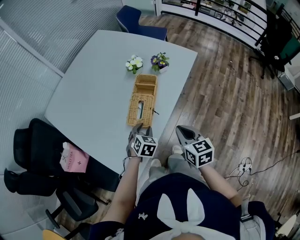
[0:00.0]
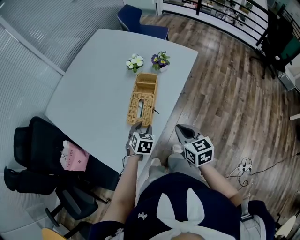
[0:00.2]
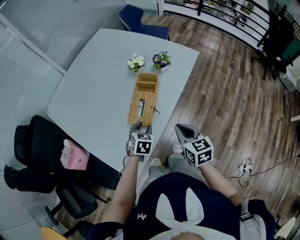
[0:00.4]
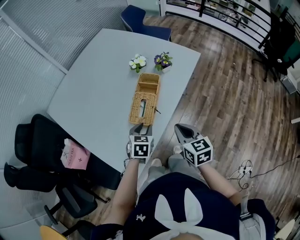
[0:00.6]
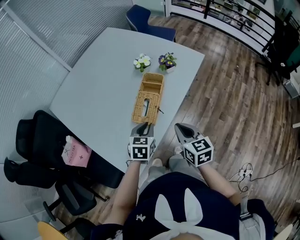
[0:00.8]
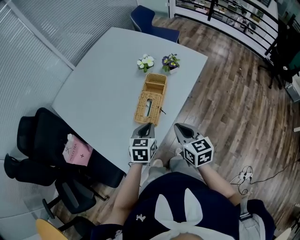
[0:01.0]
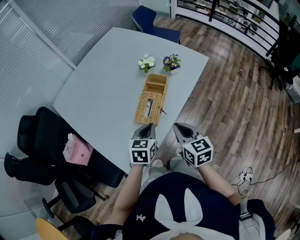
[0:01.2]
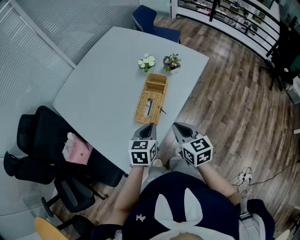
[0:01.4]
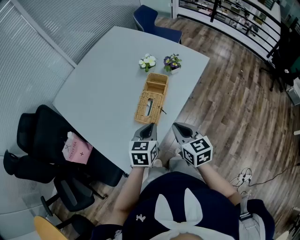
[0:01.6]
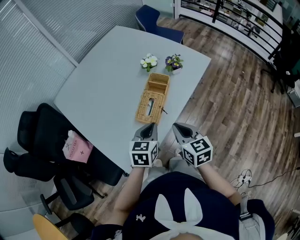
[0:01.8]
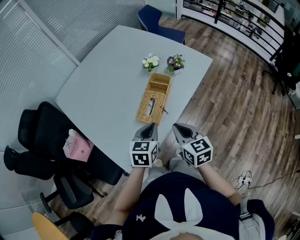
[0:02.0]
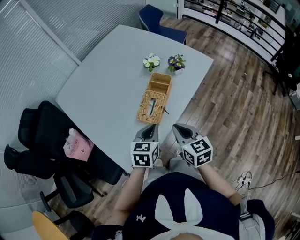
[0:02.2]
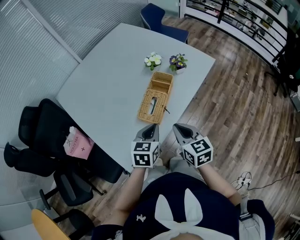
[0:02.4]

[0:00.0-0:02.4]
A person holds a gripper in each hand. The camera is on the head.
0:00.0 to 0:01.2: The right gripper changes place by about 5 cm. The left gripper goes some 10 cm upward, rotates some 30 degrees, and closes.
0:01.2 to 0:02.4: The grippers stay close to where they were, moving slightly.

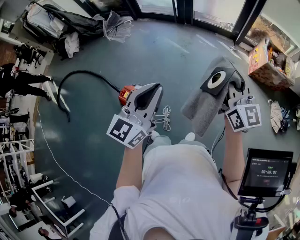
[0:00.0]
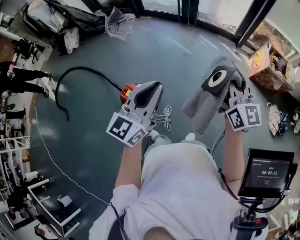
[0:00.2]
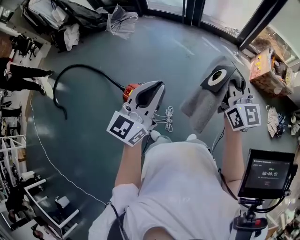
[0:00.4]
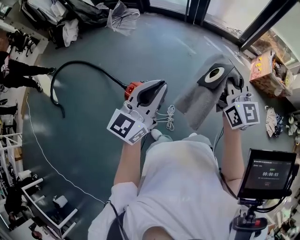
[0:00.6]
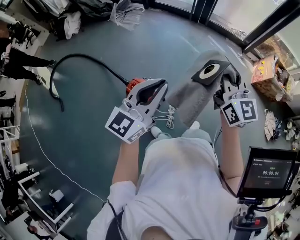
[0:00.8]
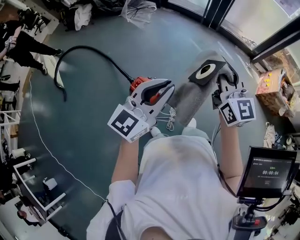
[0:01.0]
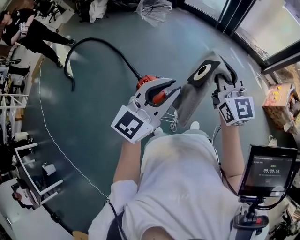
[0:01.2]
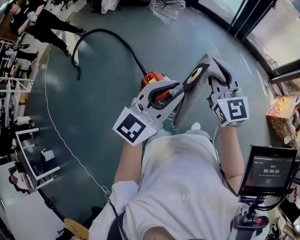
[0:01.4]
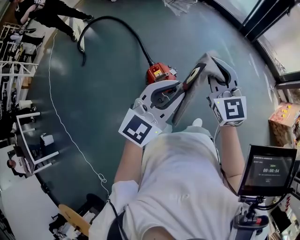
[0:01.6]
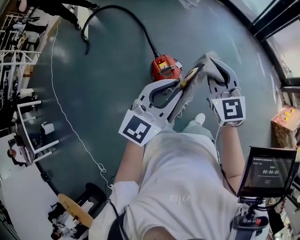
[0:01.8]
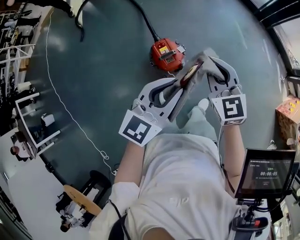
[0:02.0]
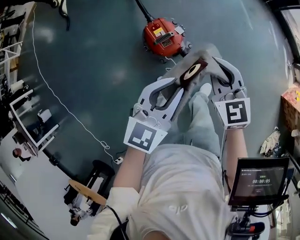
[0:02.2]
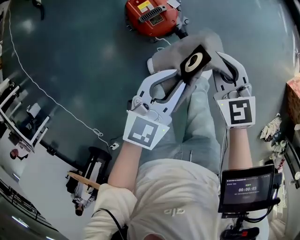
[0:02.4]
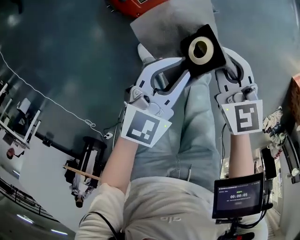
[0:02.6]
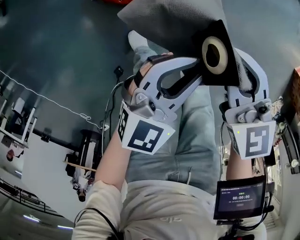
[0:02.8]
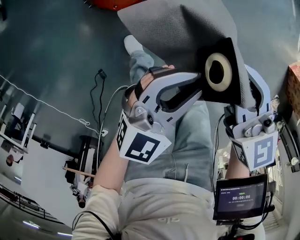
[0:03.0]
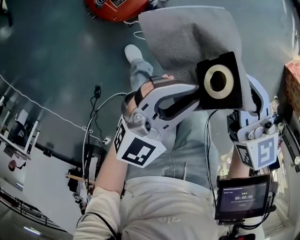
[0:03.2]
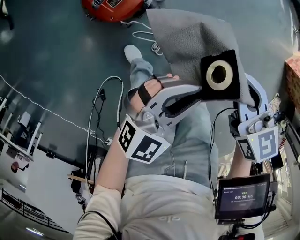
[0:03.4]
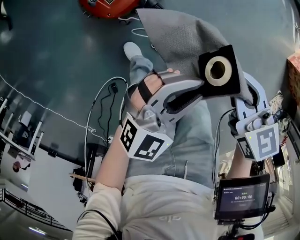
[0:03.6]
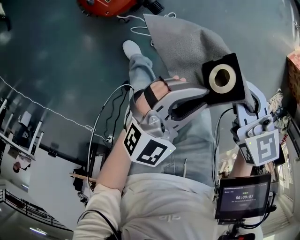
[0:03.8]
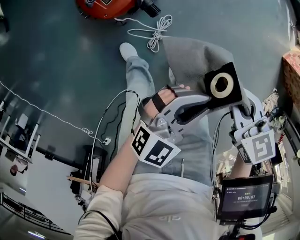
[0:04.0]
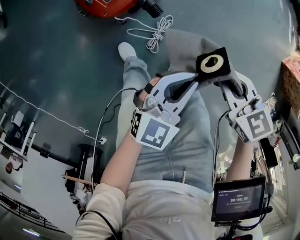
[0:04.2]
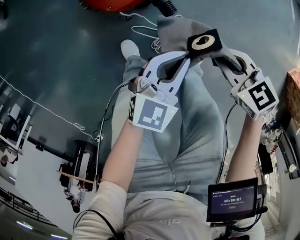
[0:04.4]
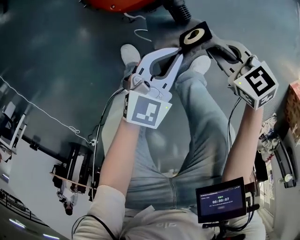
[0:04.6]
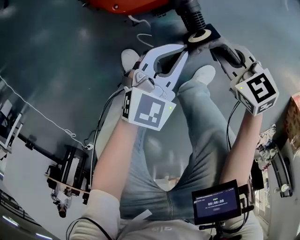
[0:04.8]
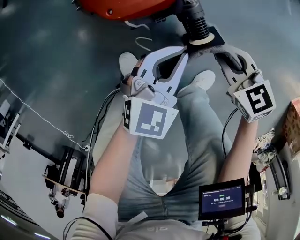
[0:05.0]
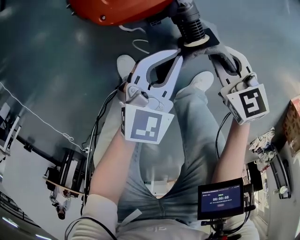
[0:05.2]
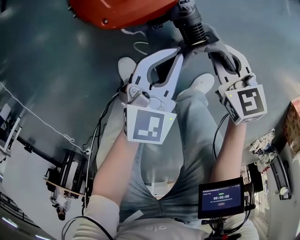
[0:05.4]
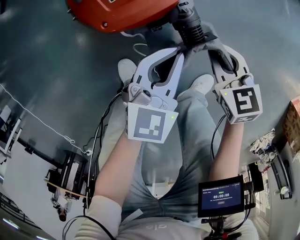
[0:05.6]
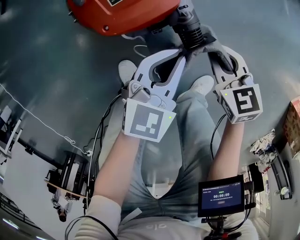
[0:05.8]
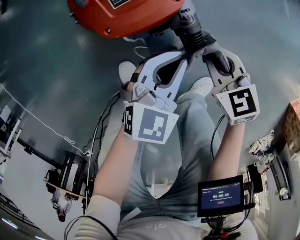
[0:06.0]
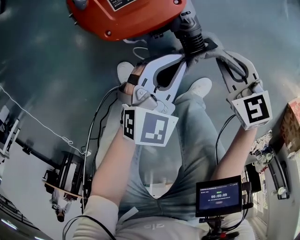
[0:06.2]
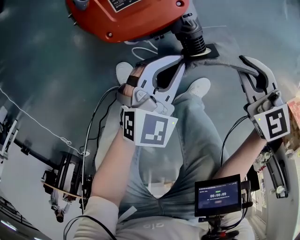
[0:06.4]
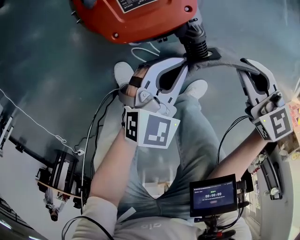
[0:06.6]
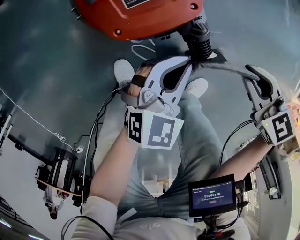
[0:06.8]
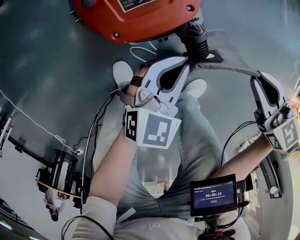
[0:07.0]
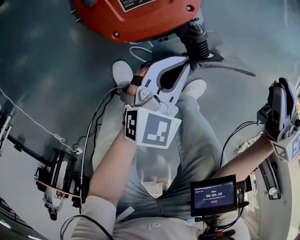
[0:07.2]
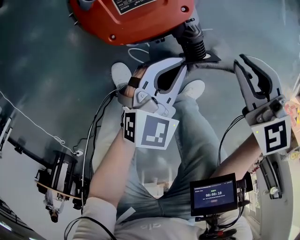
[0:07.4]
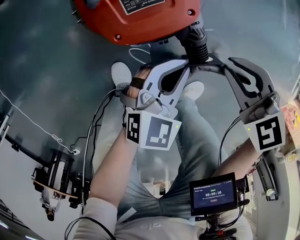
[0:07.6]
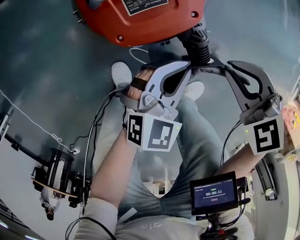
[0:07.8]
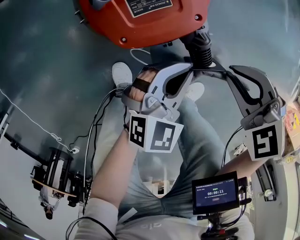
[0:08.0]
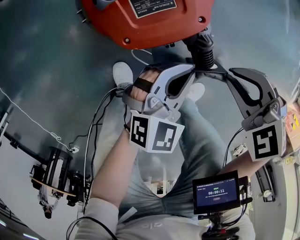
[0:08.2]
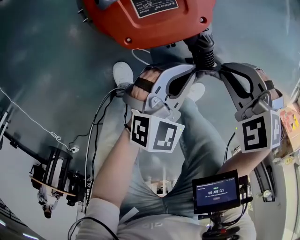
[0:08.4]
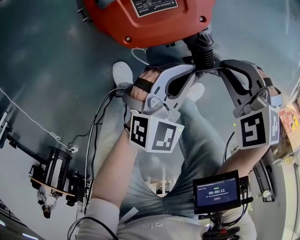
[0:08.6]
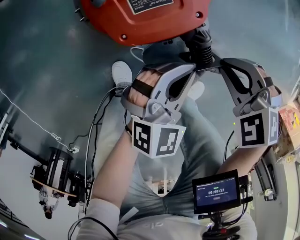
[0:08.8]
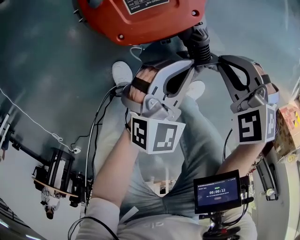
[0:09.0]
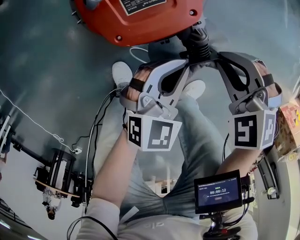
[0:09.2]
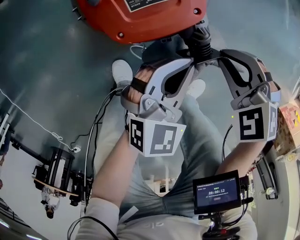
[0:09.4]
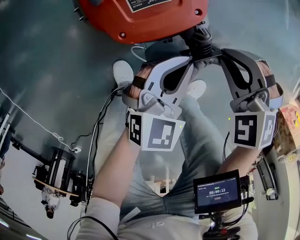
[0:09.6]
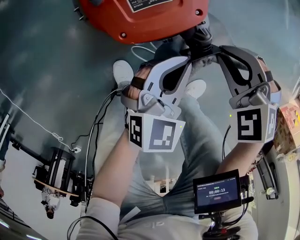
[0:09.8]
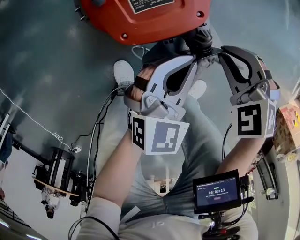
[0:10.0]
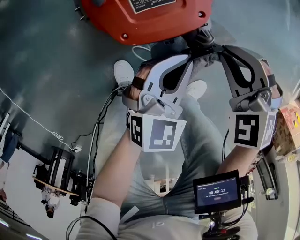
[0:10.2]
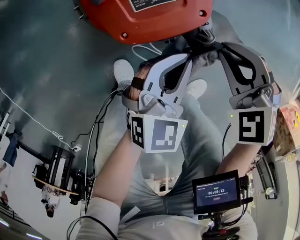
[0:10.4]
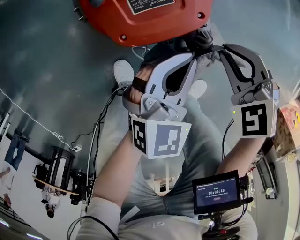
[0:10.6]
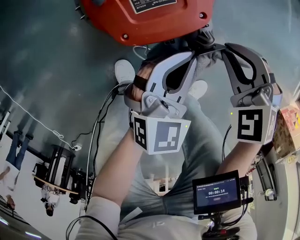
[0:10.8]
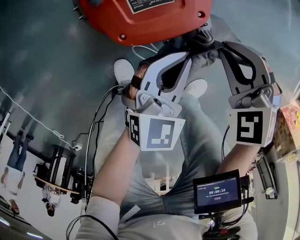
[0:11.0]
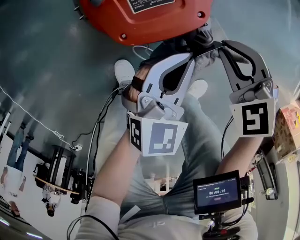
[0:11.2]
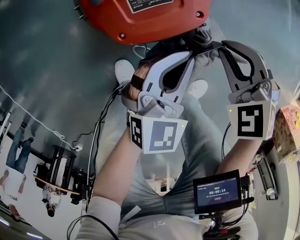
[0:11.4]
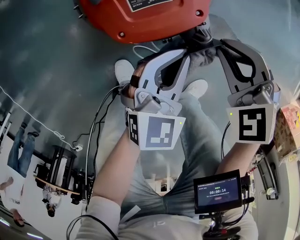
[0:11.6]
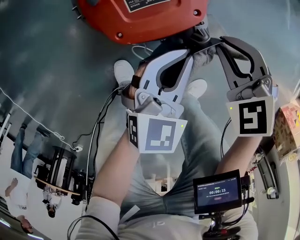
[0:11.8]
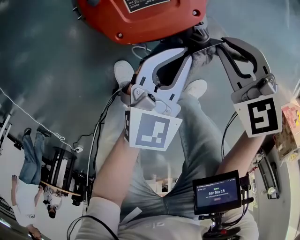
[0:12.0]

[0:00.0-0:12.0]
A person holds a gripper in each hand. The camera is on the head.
0:00.0 to 0:01.6: The left gripper shifts approximately 15 cm to the left, and swivels roughly 20 degrees, while the right gripper travels to the left by roughly 35 cm, and changes its angle by about 40 degrees.
0:01.6 to 0:03.0: Both grippers move downward, approximately 40 cm. The right gripper turns by about 40 degrees.
0:03.0 to 0:04.4: The grippers both shift downward by some 10 cm. The right gripper turns by some 30 degrees.
0:04.4 to 0:06.0: The two grippers go some 20 cm downward.
0:06.0 to 0:07.6: The right gripper travels upward by roughly 10 cm, and changes its angle by some 30 degrees.
0:07.6 to 0:09.0: The right gripper changes its angle by approximately 20 degrees.
0:09.0 to 0:10.4: There are only small adjustments of the grippers.
0:10.4 to 0:12.0: The grippers move only a little.

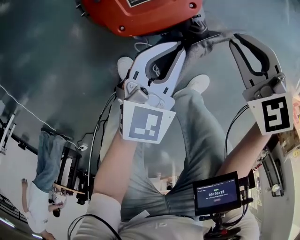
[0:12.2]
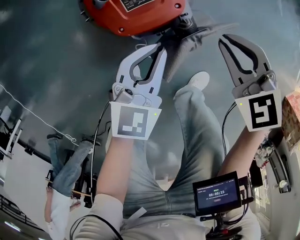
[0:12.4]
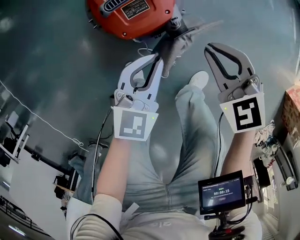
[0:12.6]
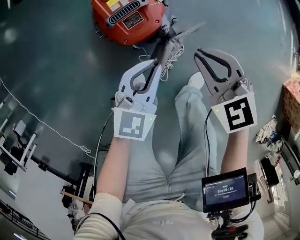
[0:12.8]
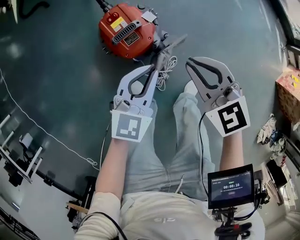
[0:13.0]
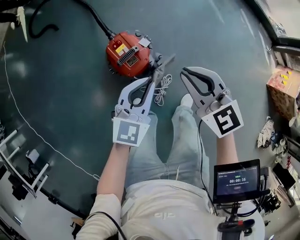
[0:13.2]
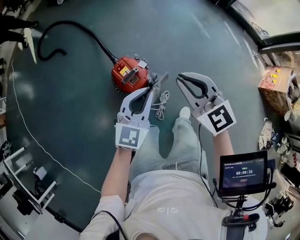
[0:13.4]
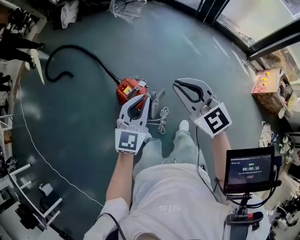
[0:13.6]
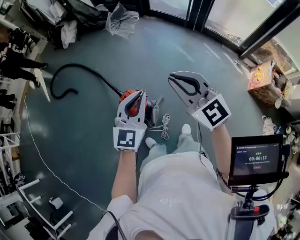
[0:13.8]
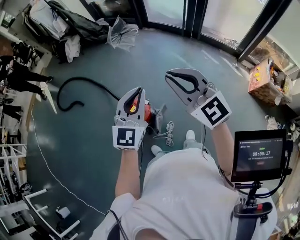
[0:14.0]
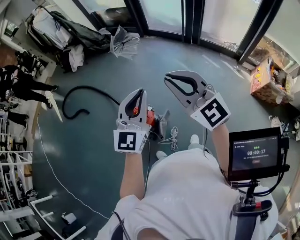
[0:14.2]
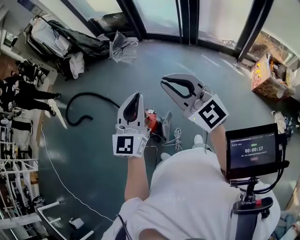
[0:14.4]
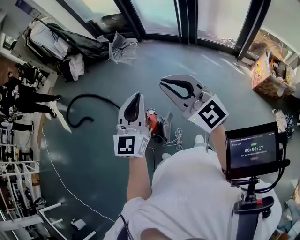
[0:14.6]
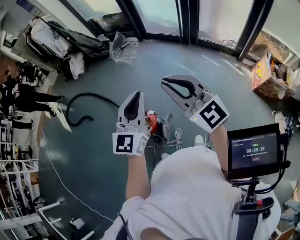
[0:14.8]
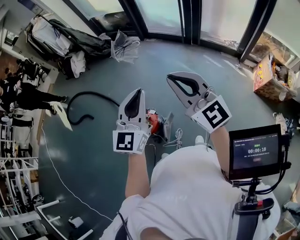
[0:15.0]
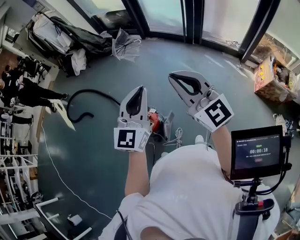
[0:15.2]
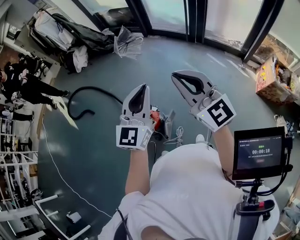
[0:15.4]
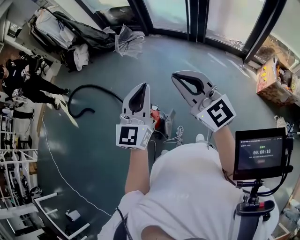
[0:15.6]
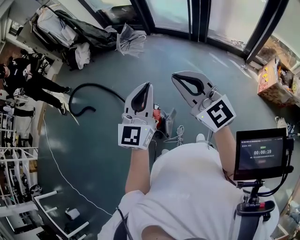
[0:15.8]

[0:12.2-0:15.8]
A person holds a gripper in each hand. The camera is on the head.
0:12.2 to 0:14.0: Both grippers move upward, approximately 80 cm. The right gripper points its fingers roughly 50 degrees further upward. Meanwhile the left gripper angles its fingers upward, by approximately 30 degrees.
0:14.0 to 0:15.8: The left gripper is displaced upward by some 5 cm.

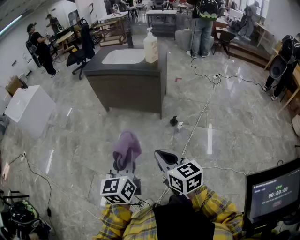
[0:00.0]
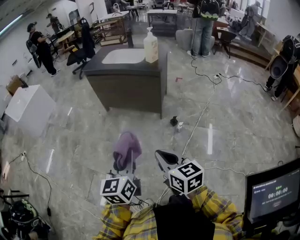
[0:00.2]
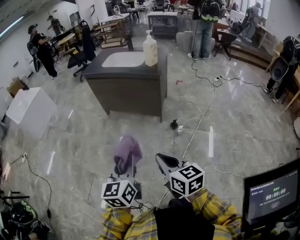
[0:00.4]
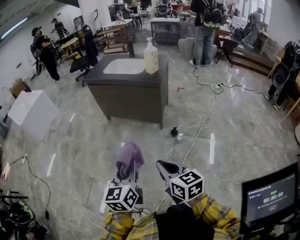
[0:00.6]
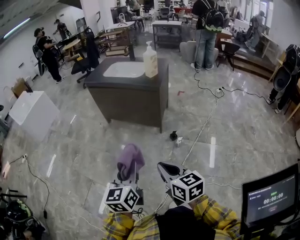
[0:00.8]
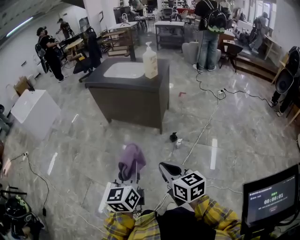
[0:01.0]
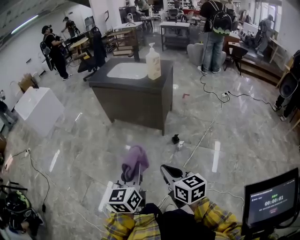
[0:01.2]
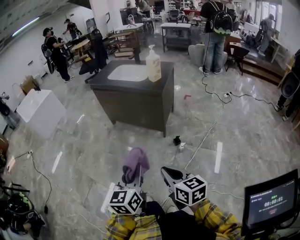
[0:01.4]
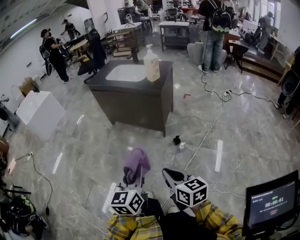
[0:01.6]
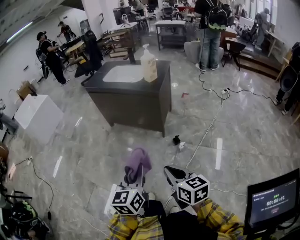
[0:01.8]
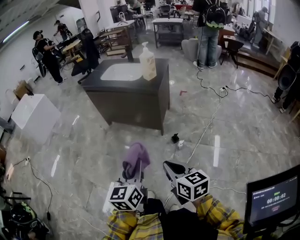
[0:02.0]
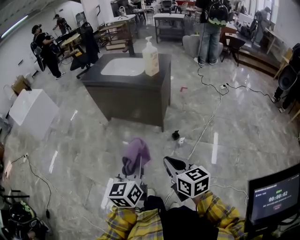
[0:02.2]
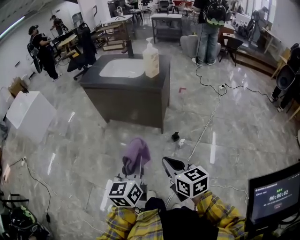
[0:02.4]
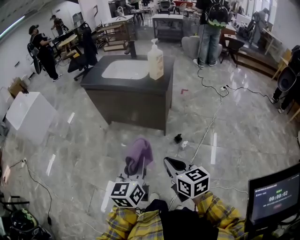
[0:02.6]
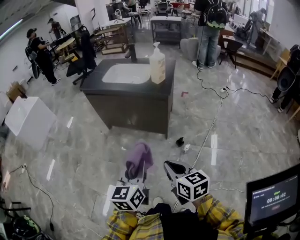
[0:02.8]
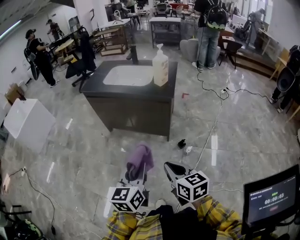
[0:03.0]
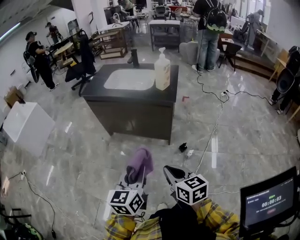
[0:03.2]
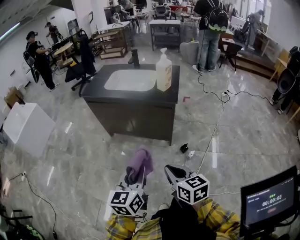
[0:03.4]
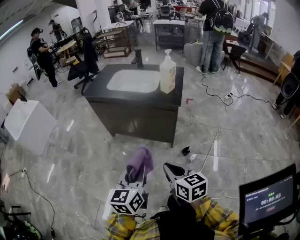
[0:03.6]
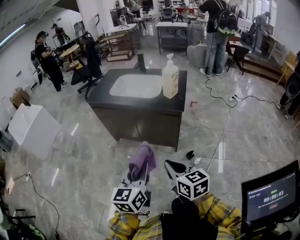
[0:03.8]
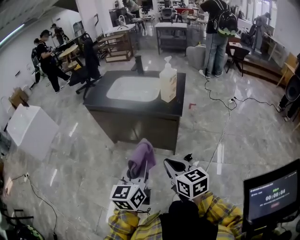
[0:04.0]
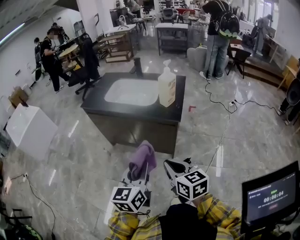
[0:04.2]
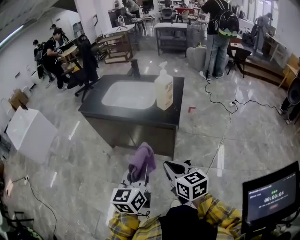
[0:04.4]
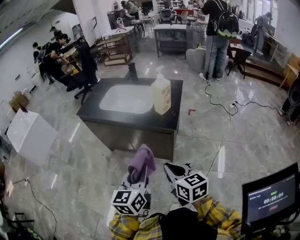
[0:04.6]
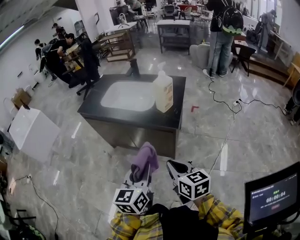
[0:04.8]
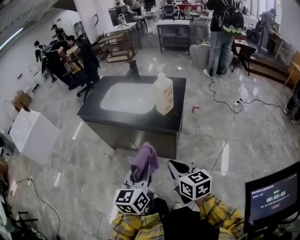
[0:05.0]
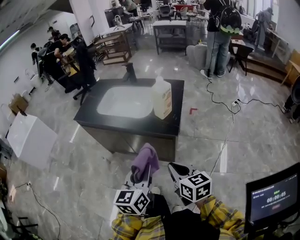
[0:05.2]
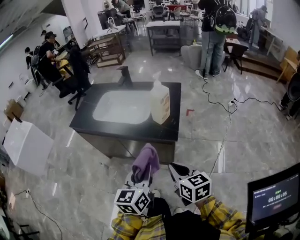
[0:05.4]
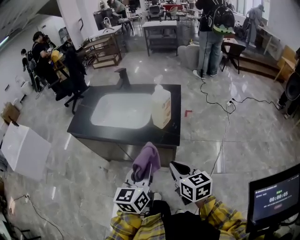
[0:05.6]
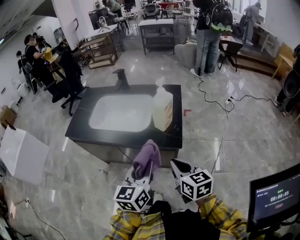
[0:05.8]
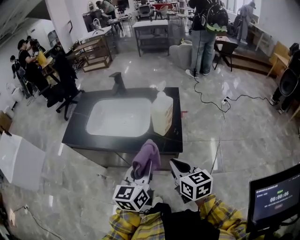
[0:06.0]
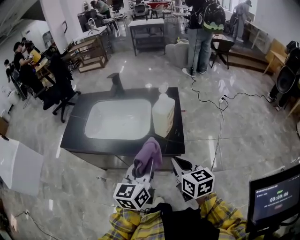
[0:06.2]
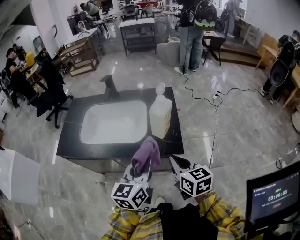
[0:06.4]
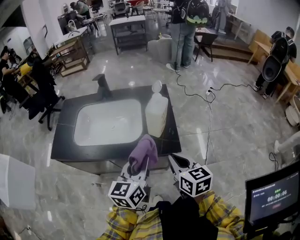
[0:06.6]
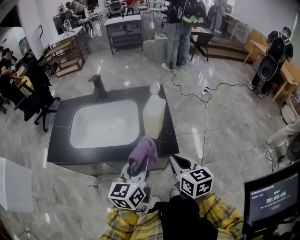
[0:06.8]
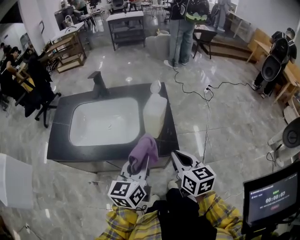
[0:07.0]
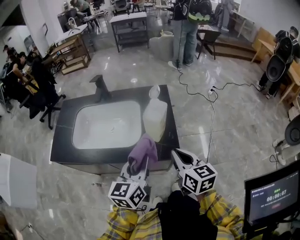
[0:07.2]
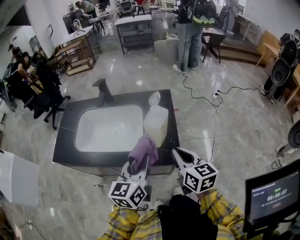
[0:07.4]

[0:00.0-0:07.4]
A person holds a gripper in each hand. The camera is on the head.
0:00.0 to 0:01.4: Both grippers move to the right, about 15 cm.
0:01.4 to 0:03.0: The two grippers go roughly 20 cm forward and to the left.
0:03.0 to 0:04.4: The grippers both shift forward by roughly 20 cm.
0:04.4 to 0:06.0: Both grippers travel together forward, some 25 cm.
0:06.0 to 0:07.4: The two grippers go roughly 10 cm forward.
